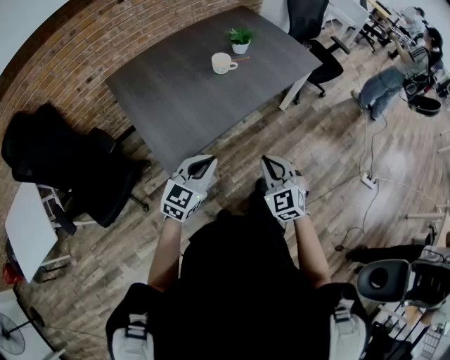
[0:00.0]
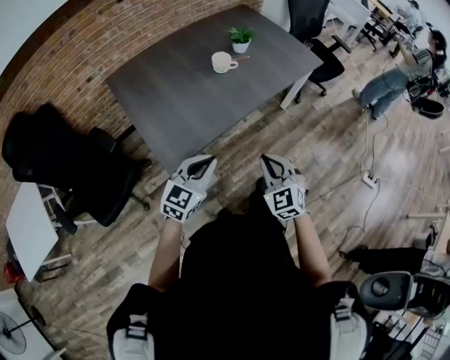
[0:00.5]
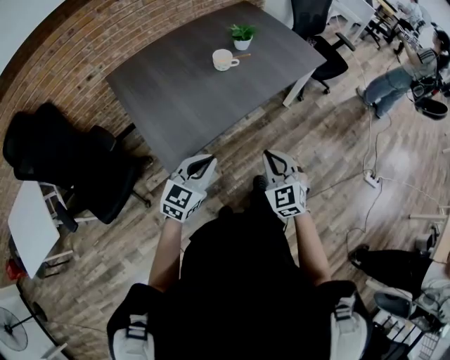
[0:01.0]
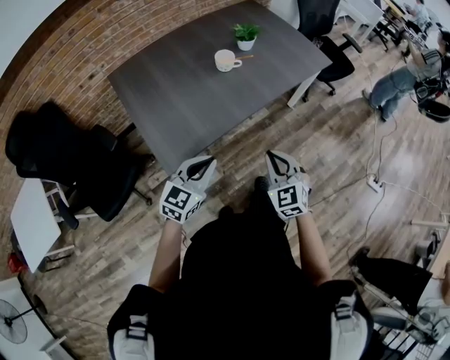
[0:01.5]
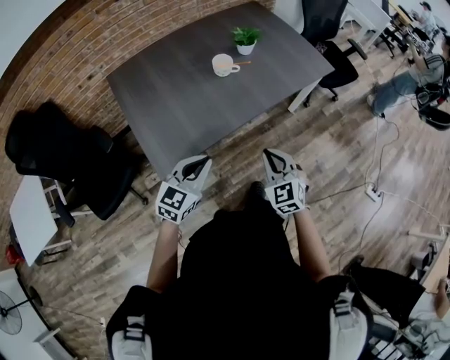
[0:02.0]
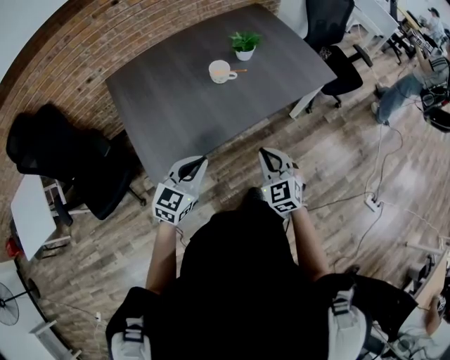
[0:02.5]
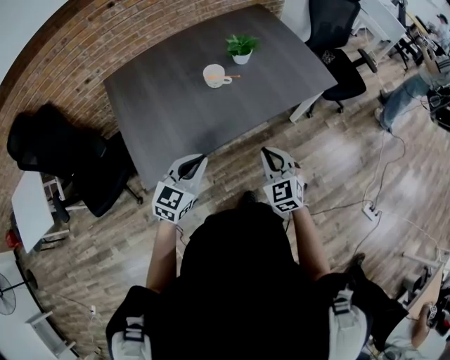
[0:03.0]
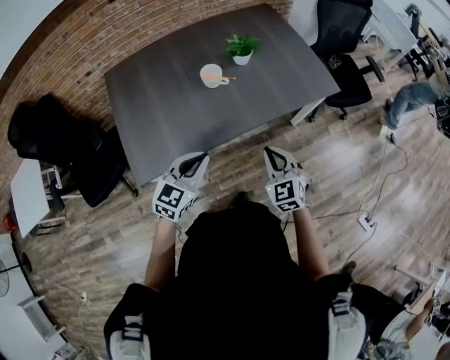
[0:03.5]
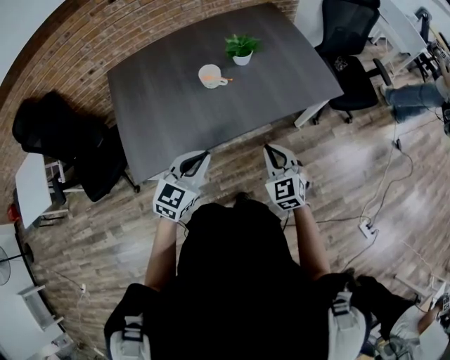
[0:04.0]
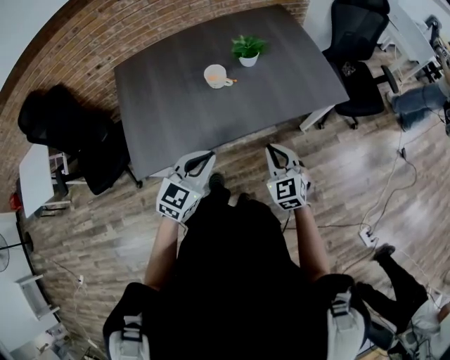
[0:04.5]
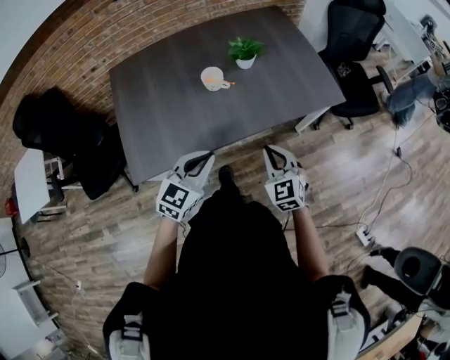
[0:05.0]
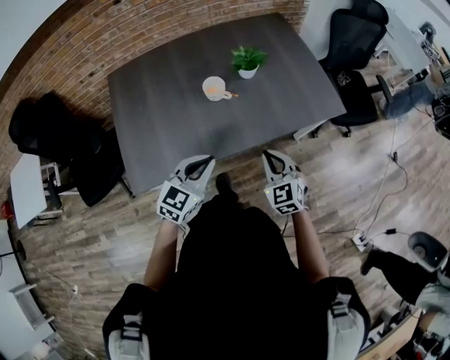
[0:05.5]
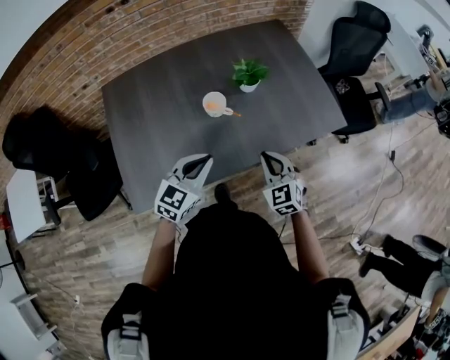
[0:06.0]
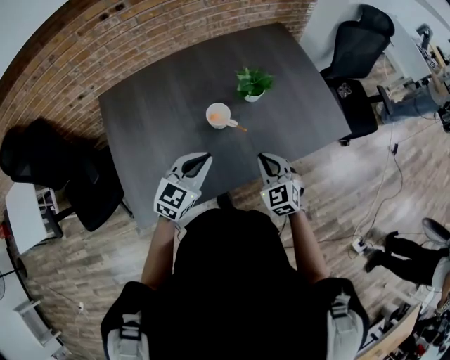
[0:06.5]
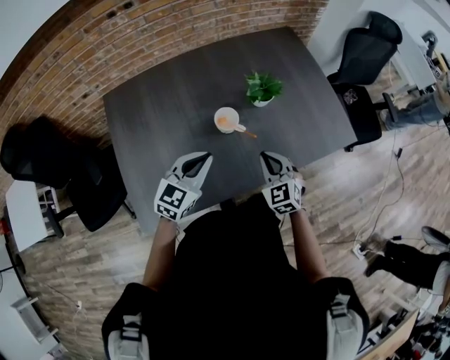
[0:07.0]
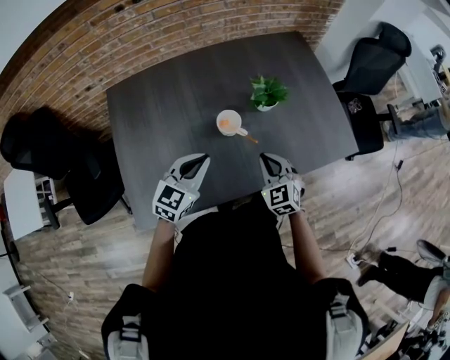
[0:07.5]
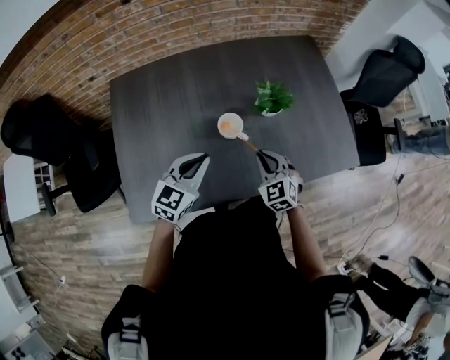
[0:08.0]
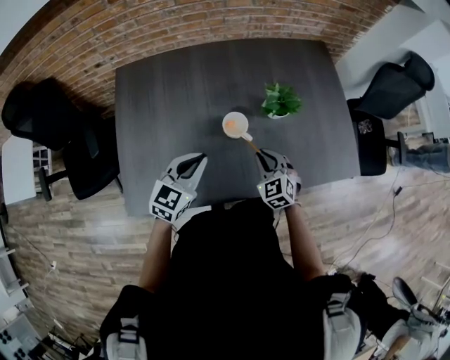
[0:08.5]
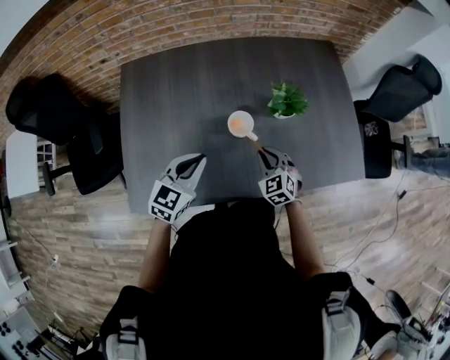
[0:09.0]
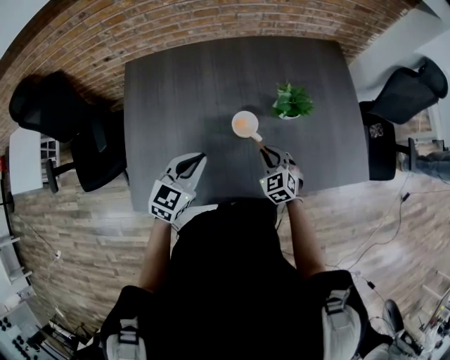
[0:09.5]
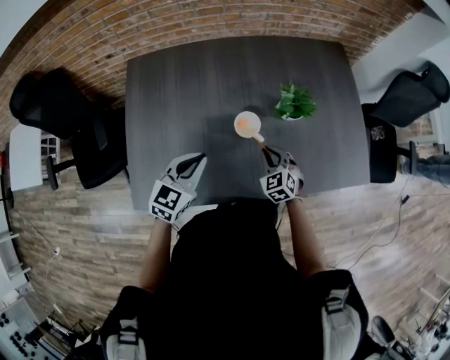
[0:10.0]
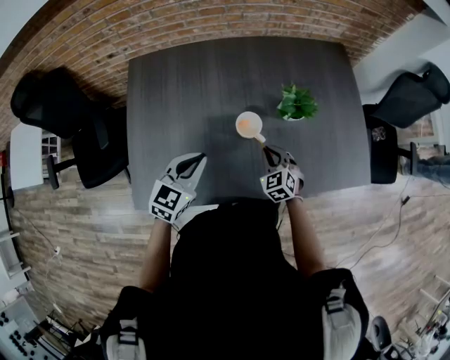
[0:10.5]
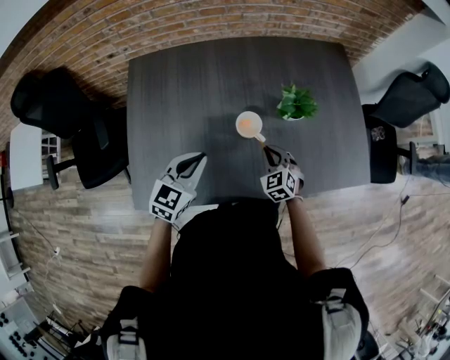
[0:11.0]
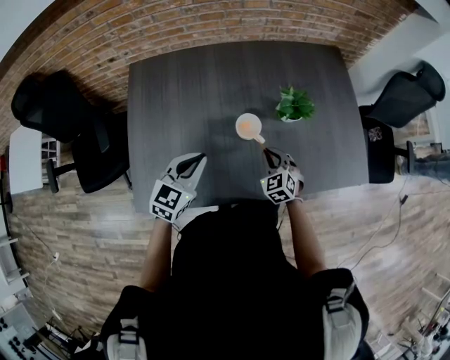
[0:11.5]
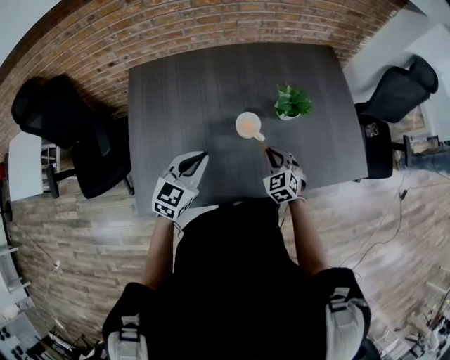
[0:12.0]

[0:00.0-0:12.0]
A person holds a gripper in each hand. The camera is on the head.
0:00.0 to 0:02.0: The left gripper travels forward by about 5 cm. Meanwhile the right gripper heads forward, covering approximately 10 cm.
0:02.0 to 0:04.0: The right gripper moves forward and to the right, about 20 cm, while the left gripper heads to the right and forward, covering roughly 20 cm.
0:04.0 to 0:06.0: The right gripper moves forward and to the left, roughly 15 cm, while the left gripper shifts some 15 cm forward.
0:06.0 to 0:08.0: The right gripper moves forward, to the left and downward, some 15 cm. The left gripper goes about 15 cm forward and to the left.
0:08.0 to 0:10.0: The right gripper moves downward, roughly 10 cm. The left gripper heads to the left, covering roughly 5 cm.
0:10.0 to 0:12.0: The grippers move only a little.

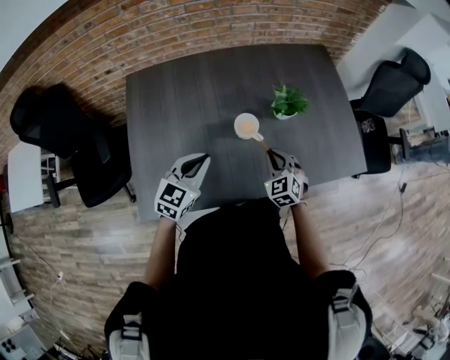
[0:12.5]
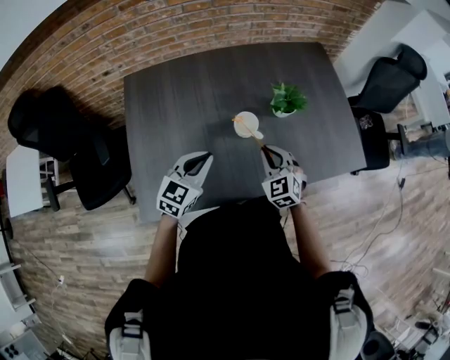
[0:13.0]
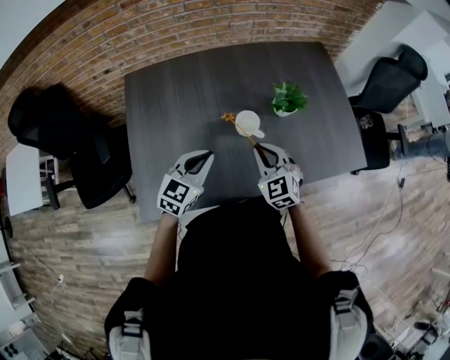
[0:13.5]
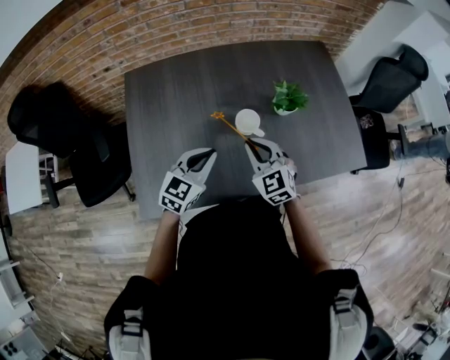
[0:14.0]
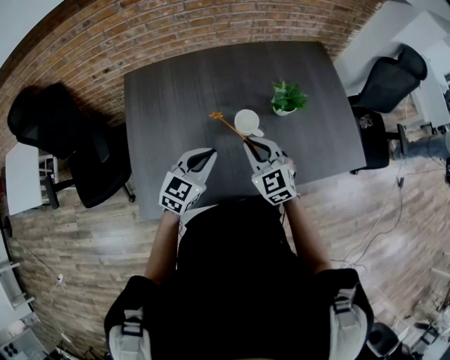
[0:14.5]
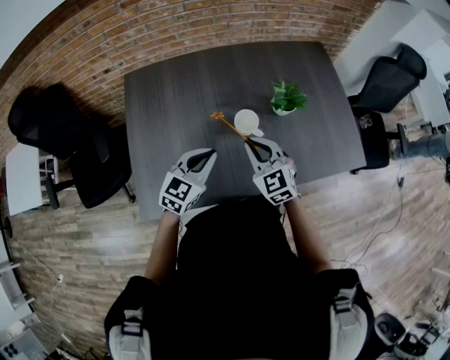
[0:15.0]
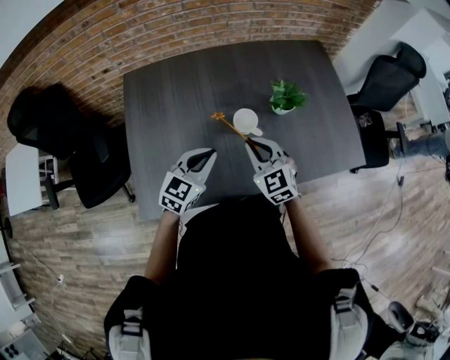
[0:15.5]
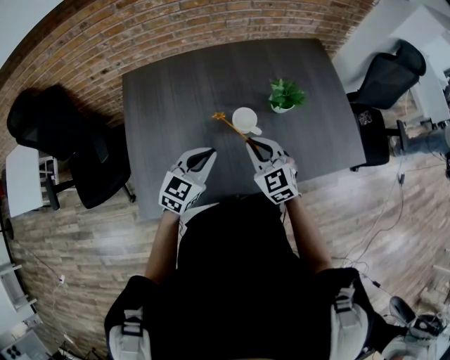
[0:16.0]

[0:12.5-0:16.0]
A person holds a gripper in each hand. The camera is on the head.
0:12.5 to 0:14.5: The right gripper travels upward and to the left by about 15 cm.
0:14.5 to 0:16.0: Both grippers stay put.

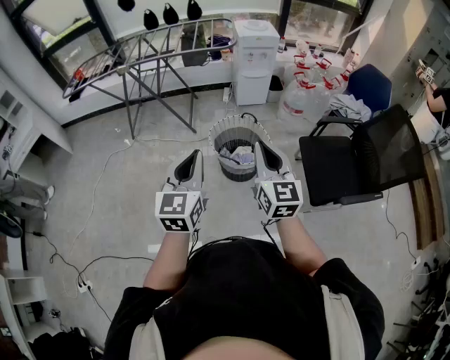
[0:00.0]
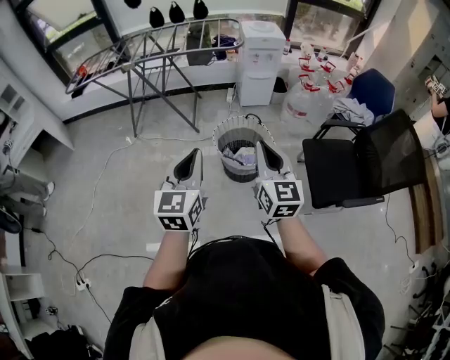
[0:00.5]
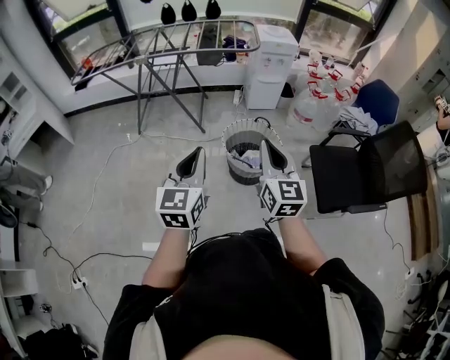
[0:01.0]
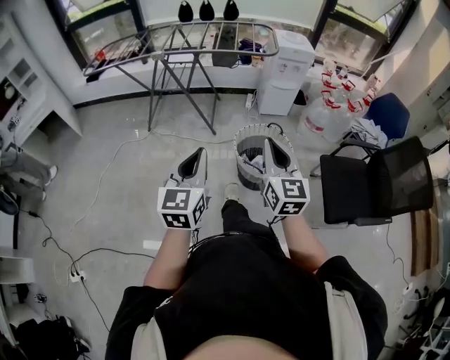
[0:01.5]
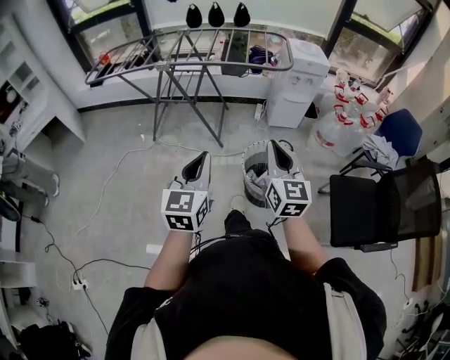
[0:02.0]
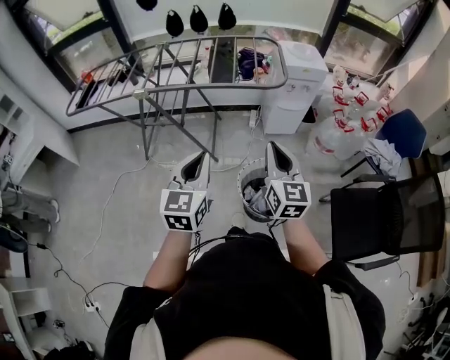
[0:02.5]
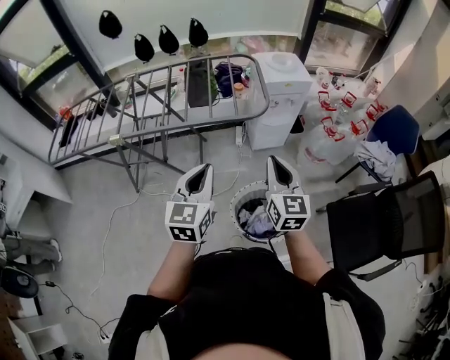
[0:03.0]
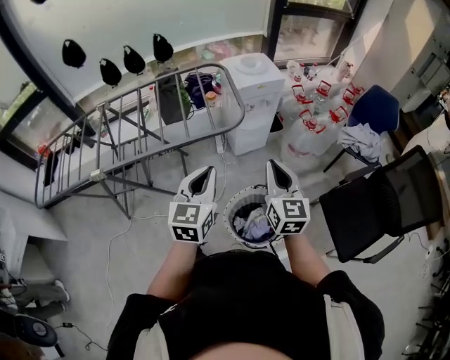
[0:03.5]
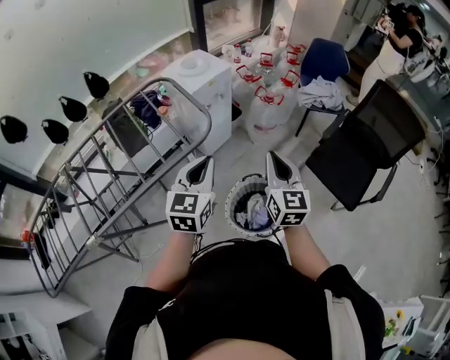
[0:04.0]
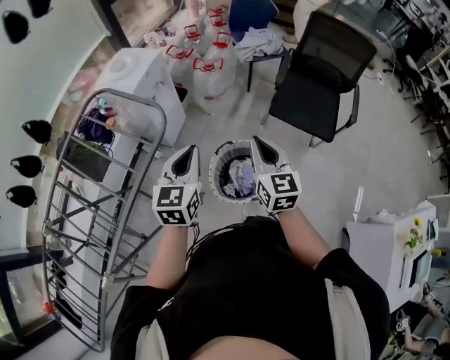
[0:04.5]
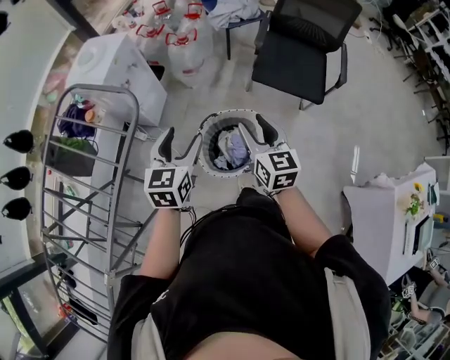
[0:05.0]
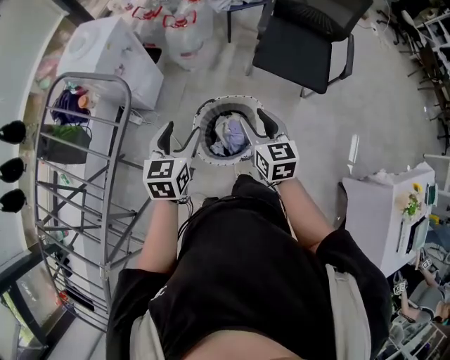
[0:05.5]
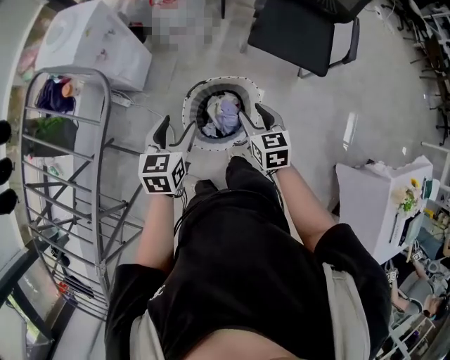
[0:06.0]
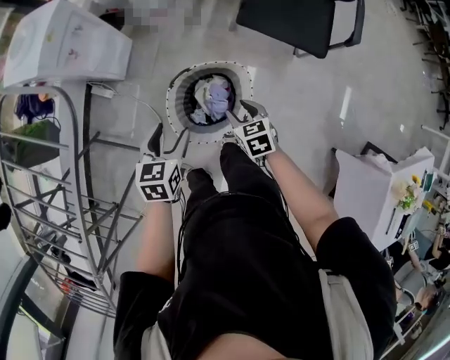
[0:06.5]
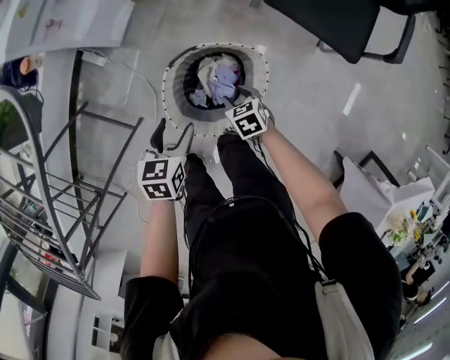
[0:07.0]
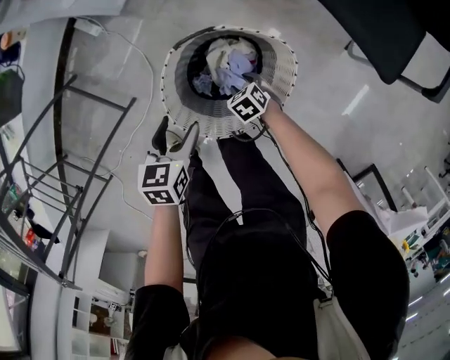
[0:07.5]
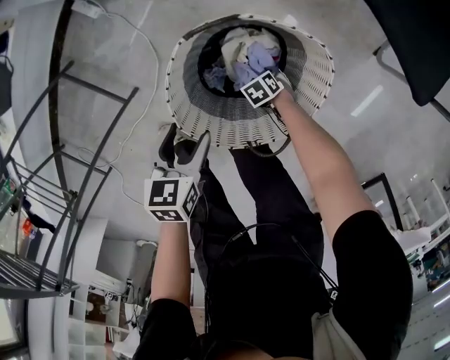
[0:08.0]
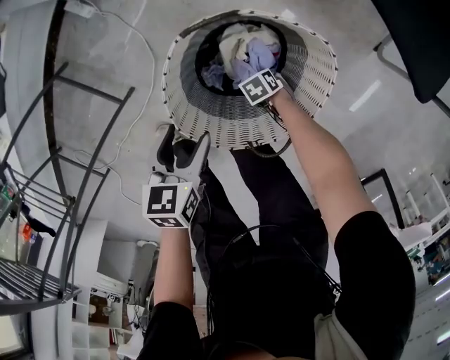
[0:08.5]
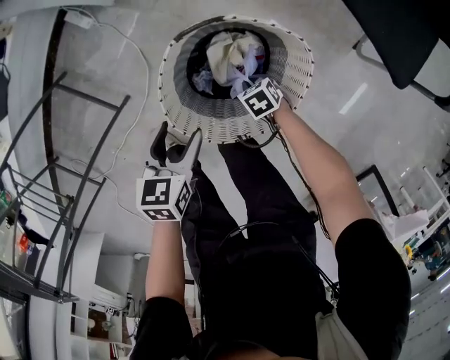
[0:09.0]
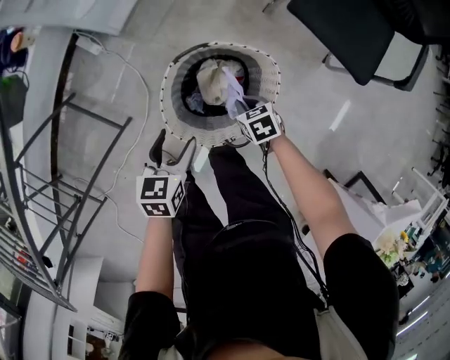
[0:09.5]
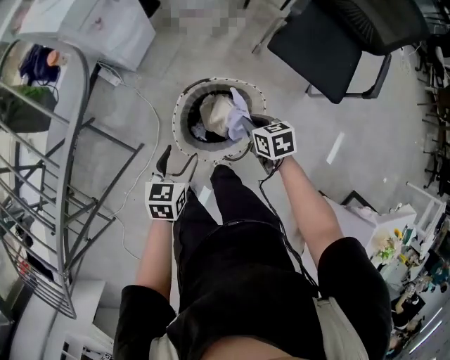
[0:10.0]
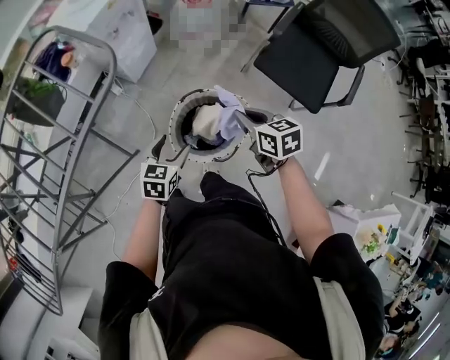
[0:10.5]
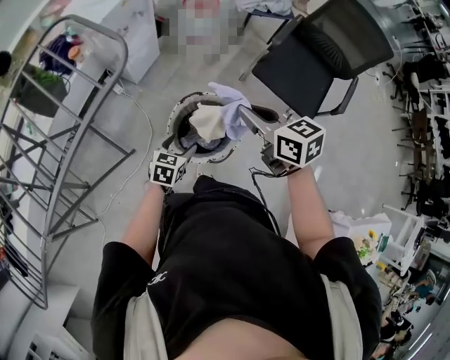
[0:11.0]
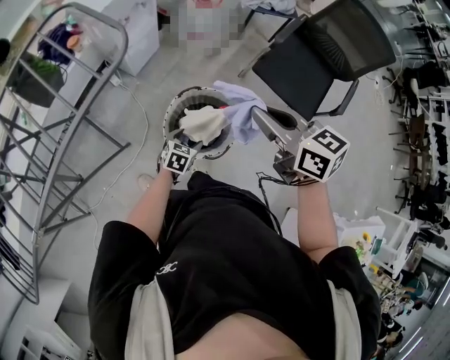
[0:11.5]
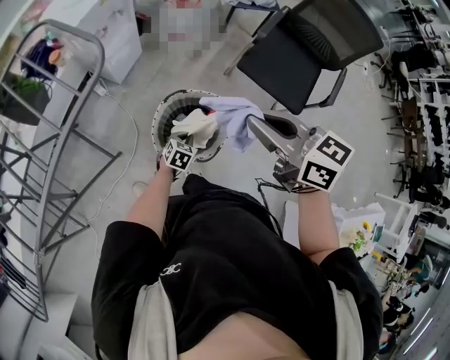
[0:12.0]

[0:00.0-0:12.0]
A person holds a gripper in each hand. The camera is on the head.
0:00.0 to 0:02.0: The right gripper is displaced forward and to the left by approximately 25 cm. The left gripper moves to the left and forward, about 20 cm.
0:02.0 to 0:04.0: The left gripper shifts by approximately 50 cm, and swivels about 50 degrees; the right gripper shifts by some 35 cm, and changes its angle by some 50 degrees.
0:04.0 to 0:06.0: Both grippers travel together downward and to the right, roughly 25 cm. The right gripper angles its fingers downward, by some 30 degrees, and opens. The left gripper swivels approximately 40 degrees, and opens up.
0:06.0 to 0:08.0: The right gripper is displaced downward by some 60 cm, and angles its fingers downward, by some 50 degrees. The left gripper goes approximately 40 cm downward, and rotates some 30 degrees.
0:08.0 to 0:10.0: The left gripper is displaced upward by some 25 cm. The right gripper is displaced upward by about 50 cm, rotates about 40 degrees, and closes.
0:10.0 to 0:12.0: The right gripper travels upward by approximately 40 cm, and angles its fingers upward, by roughly 30 degrees, while the left gripper heads to the right and downward, covering approximately 15 cm, and closes up.
